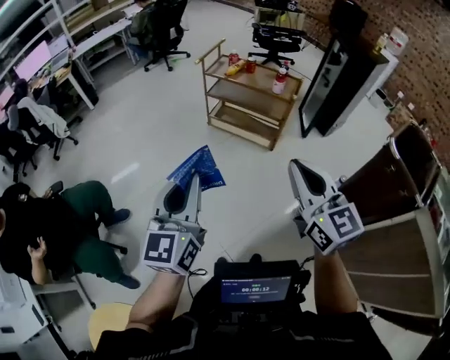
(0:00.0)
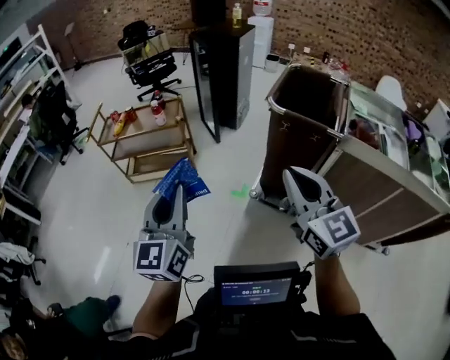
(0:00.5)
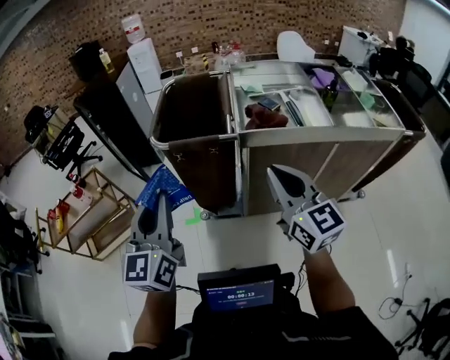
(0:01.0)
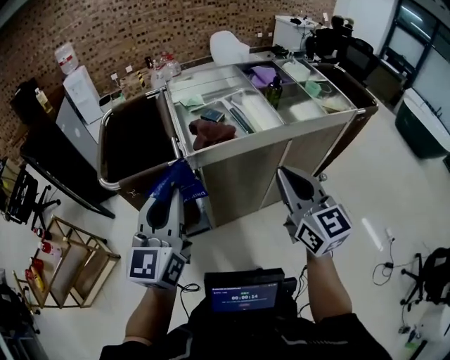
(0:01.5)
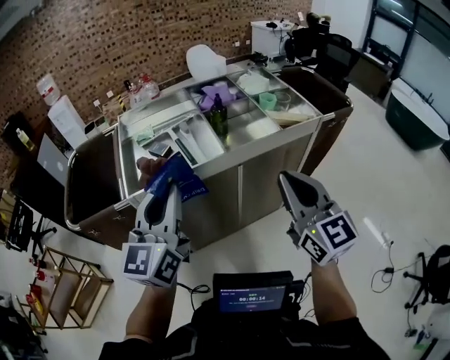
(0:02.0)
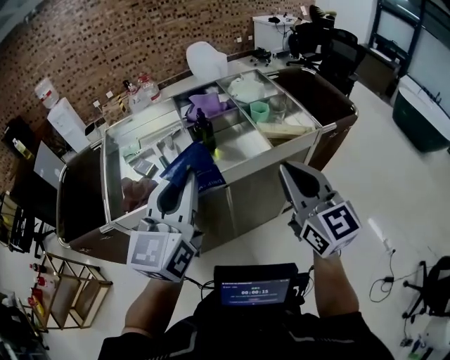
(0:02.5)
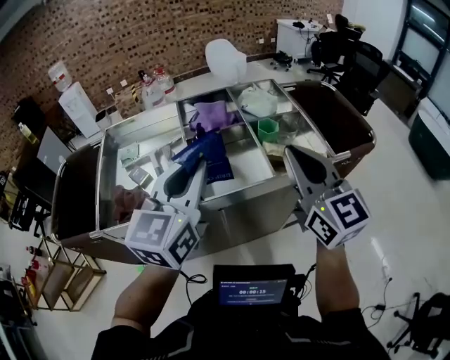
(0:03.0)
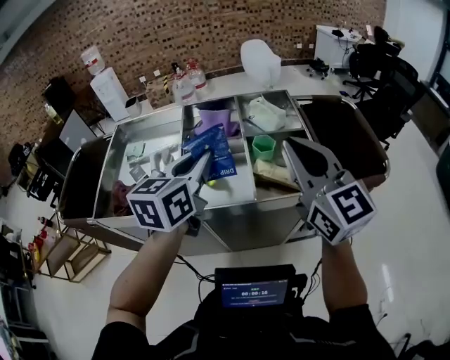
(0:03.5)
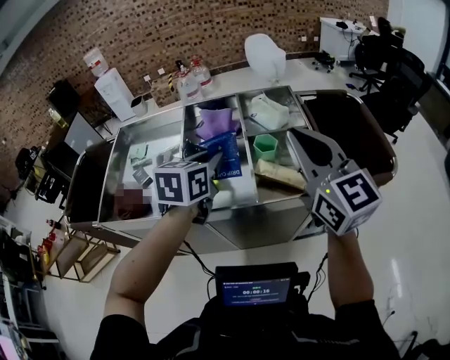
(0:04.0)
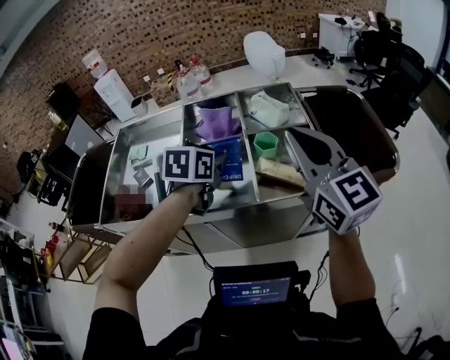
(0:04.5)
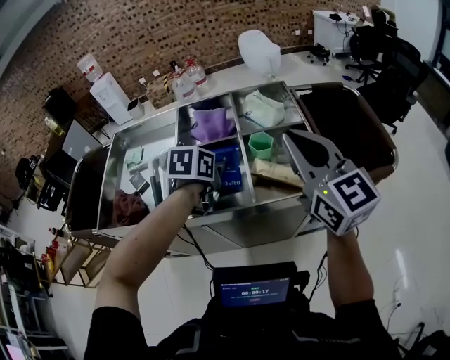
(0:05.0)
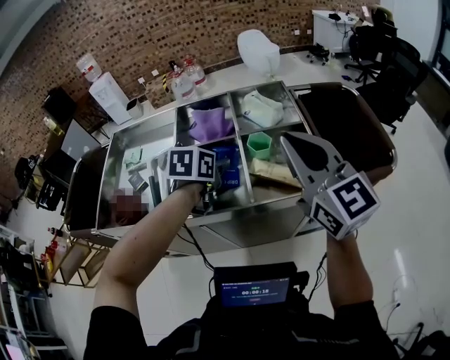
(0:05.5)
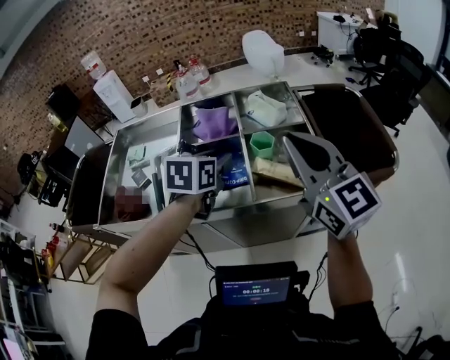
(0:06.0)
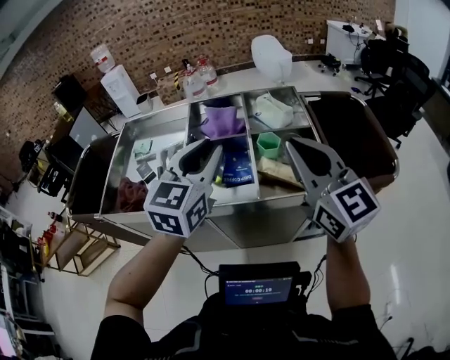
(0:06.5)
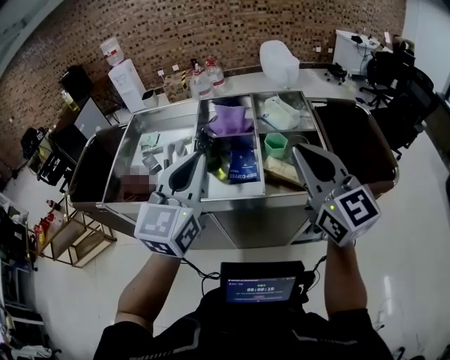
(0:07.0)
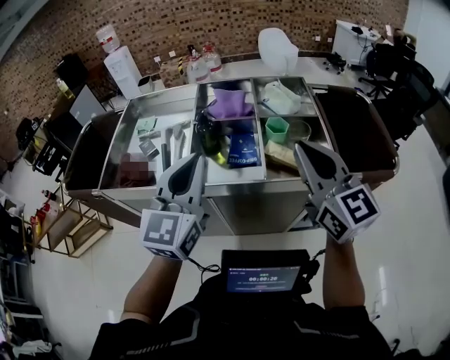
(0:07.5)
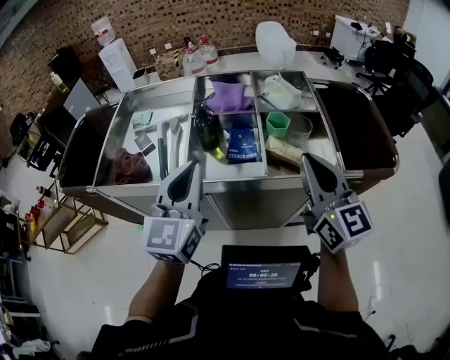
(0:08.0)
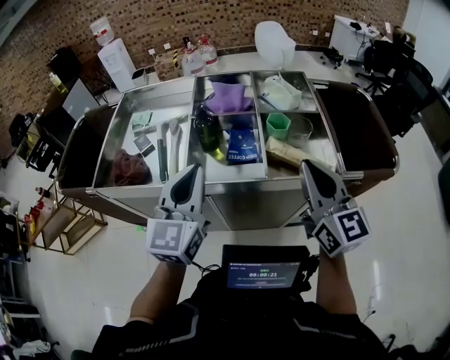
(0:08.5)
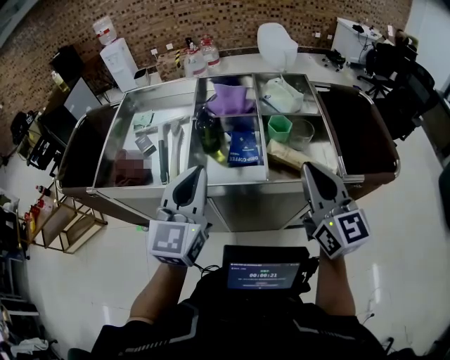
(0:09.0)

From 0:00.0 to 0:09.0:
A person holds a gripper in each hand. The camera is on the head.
From 0:00.0 to 0:02.0: The two grippers travel together, roughly 1 m. The left gripper swivels roughly 90 degrees, while the right gripper swivels about 90 degrees.
From 0:02.0 to 0:04.5: The two grippers travel together, forward and to the right, approximately 50 cm. The left gripper tilts its fingers approximately 50 degrees downward. Meanwhile the right gripper changes its angle by approximately 20 degrees.
From 0:04.5 to 0:07.0: The left gripper shifts approximately 20 cm backward, upward and to the left, and points its fingers roughly 40 degrees further upward. Meanwhile the right gripper shifts approximately 5 cm backward.
From 0:07.0 to 0:09.0: The grippers both shift downward by approximately 10 cm.

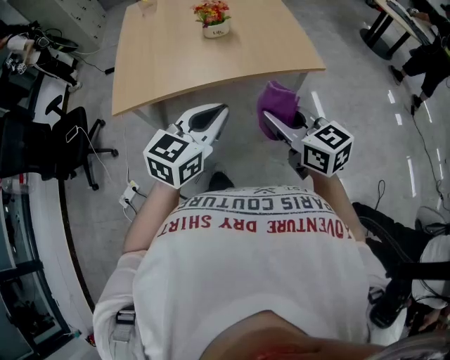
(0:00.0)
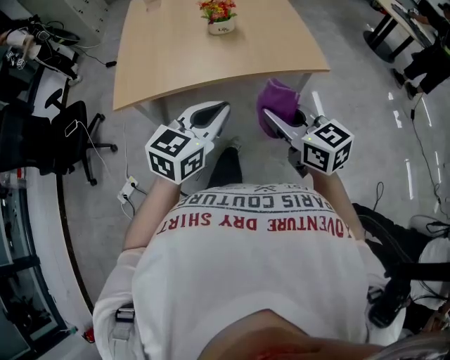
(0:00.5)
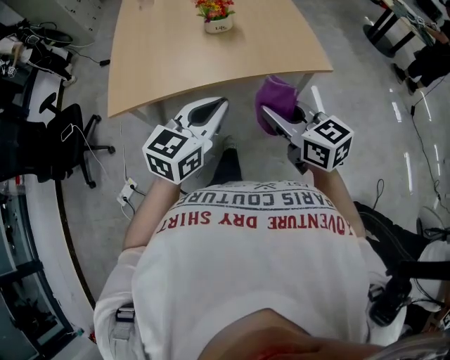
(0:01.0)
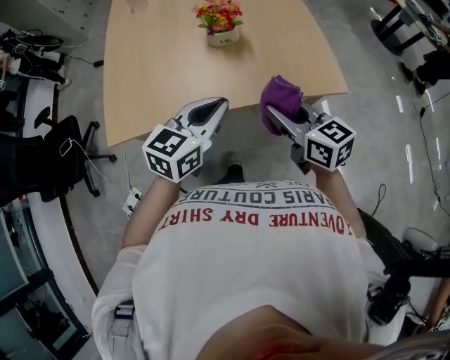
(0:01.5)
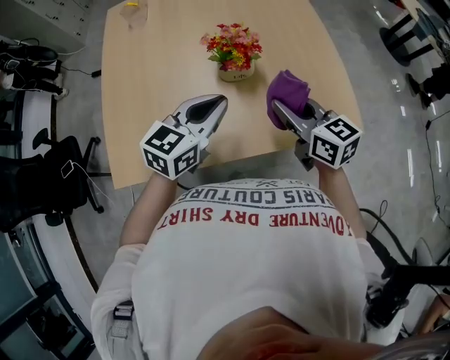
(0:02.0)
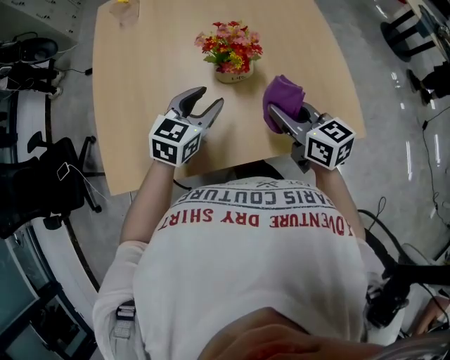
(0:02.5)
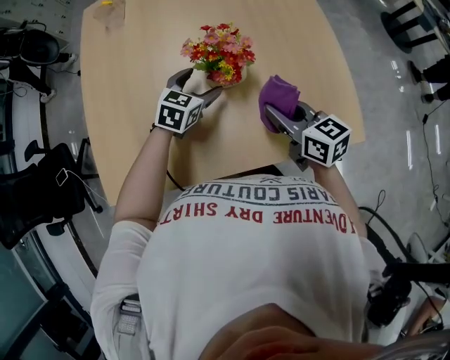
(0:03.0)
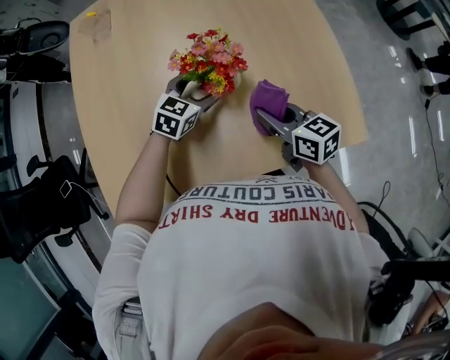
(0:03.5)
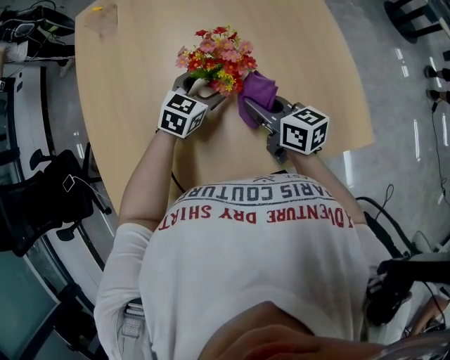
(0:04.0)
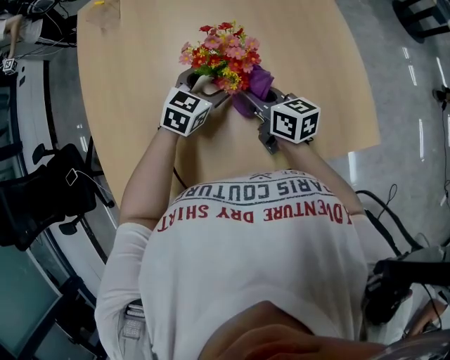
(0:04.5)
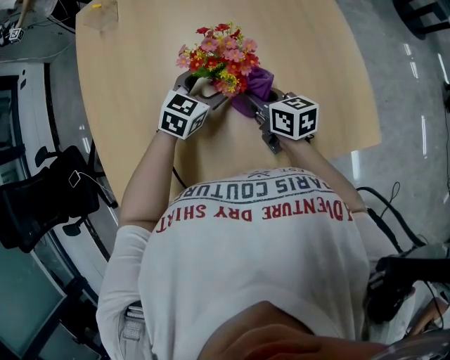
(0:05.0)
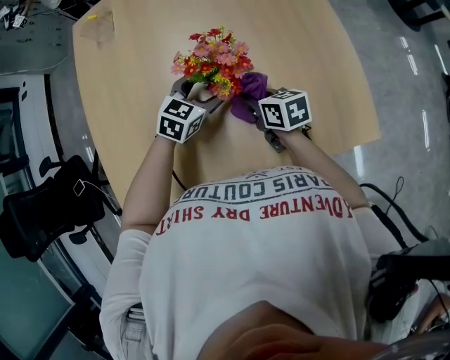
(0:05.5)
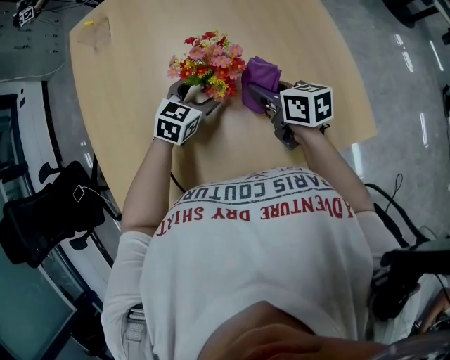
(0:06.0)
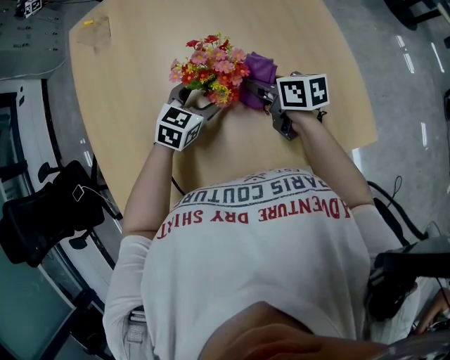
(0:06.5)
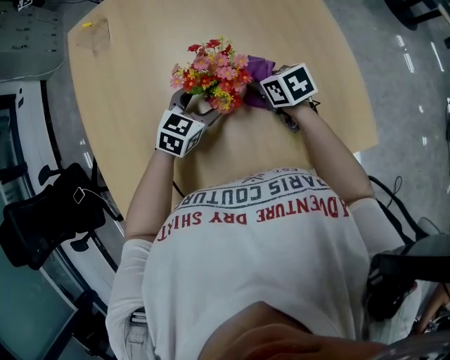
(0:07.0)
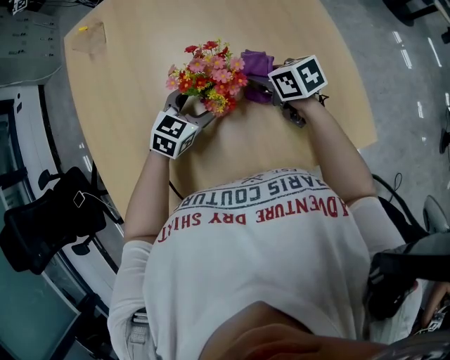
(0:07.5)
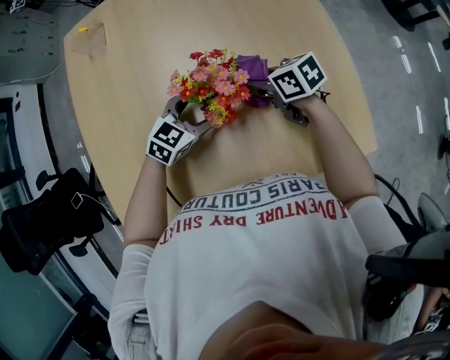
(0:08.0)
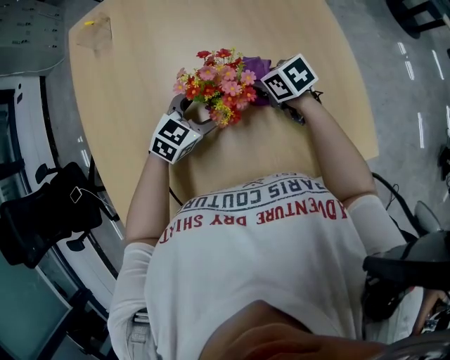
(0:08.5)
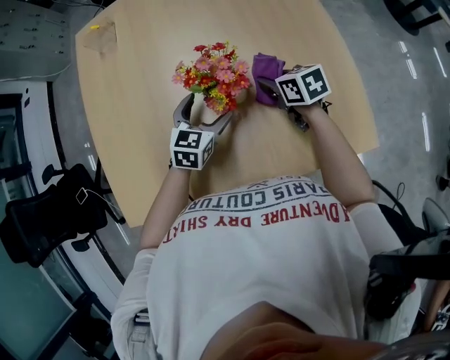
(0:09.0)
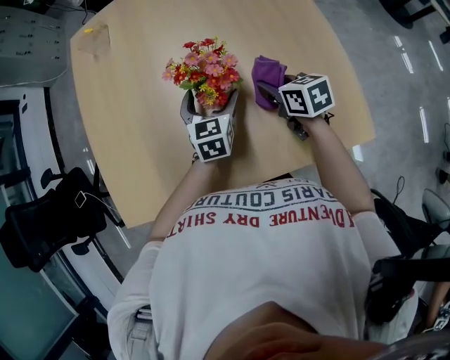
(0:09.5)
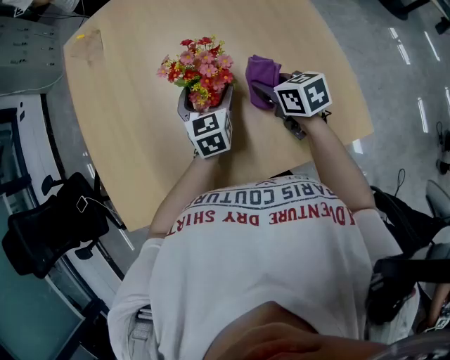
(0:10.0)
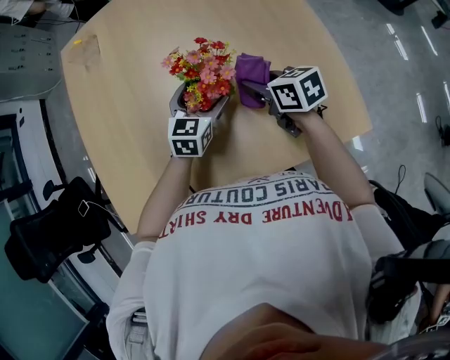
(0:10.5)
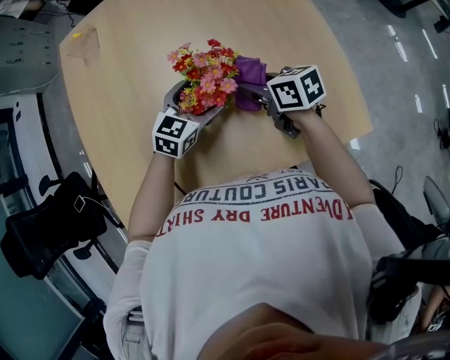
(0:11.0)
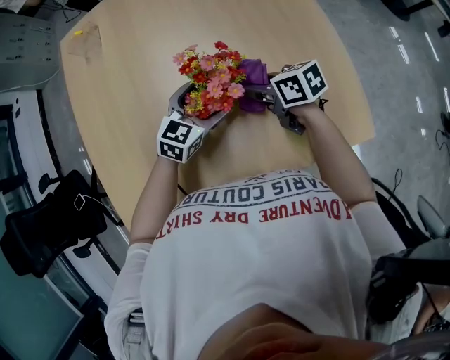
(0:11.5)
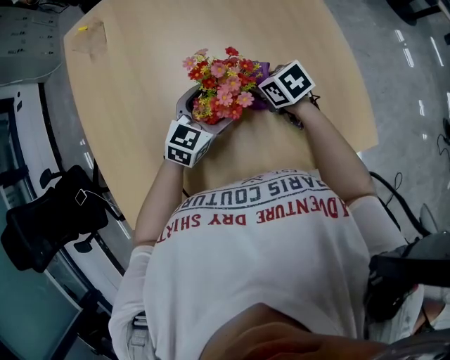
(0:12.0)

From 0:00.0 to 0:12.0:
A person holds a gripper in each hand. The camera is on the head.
From 0:00.0 to 0:02.0: The pair of grippers is taken forward, approximately 40 cm.
From 0:02.0 to 0:04.0: The right gripper moves downward and forward, approximately 15 cm. The left gripper is displaced downward and forward by about 25 cm, swivels about 20 degrees, and opens its fingers.
From 0:06.0 to 0:08.0: The right gripper changes place by about 10 cm, and changes its angle by roughly 20 degrees.
From 0:08.0 to 0:10.0: The left gripper rotates about 50 degrees; the right gripper ends up approximately 5 cm from where it was.
From 0:10.0 to 0:12.0: The left gripper swivels about 40 degrees. The right gripper is displaced downward by roughly 5 cm.

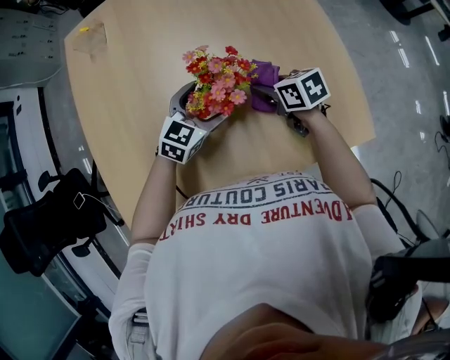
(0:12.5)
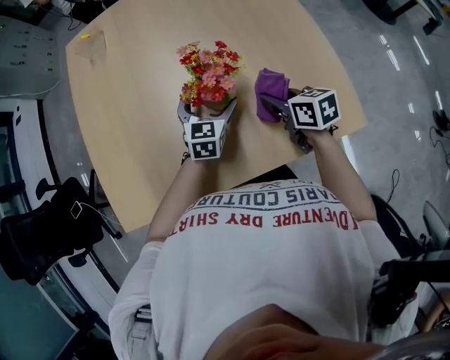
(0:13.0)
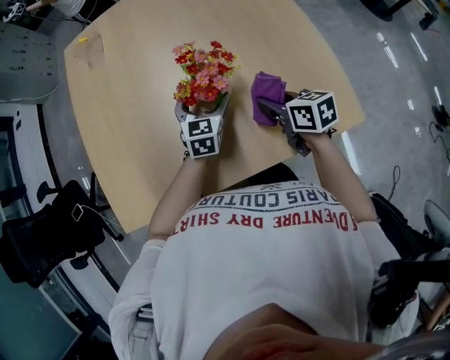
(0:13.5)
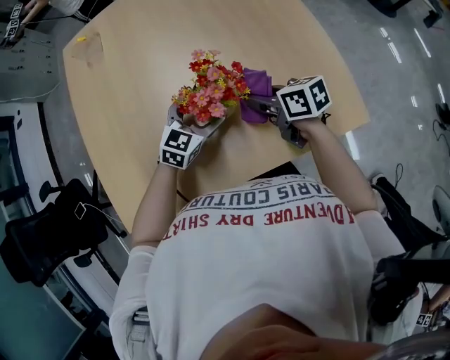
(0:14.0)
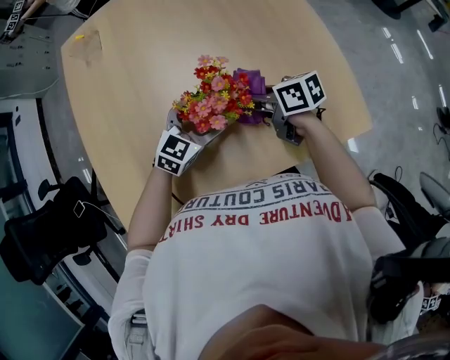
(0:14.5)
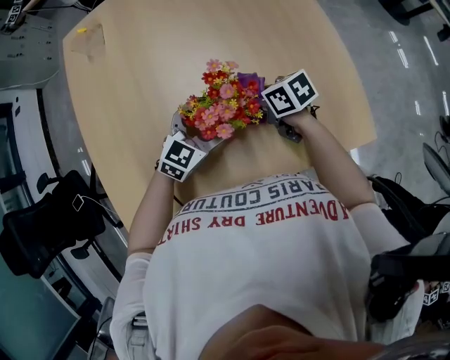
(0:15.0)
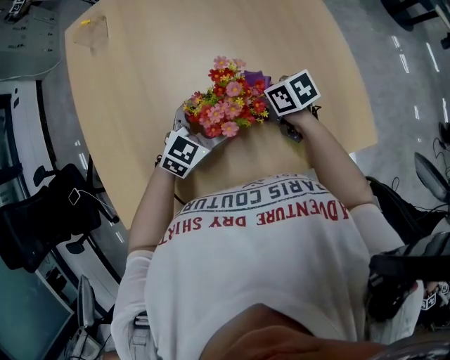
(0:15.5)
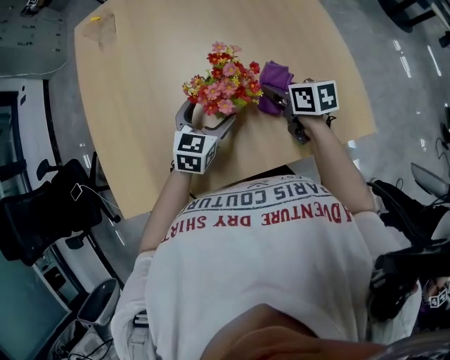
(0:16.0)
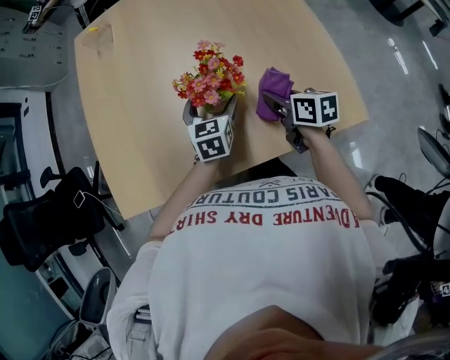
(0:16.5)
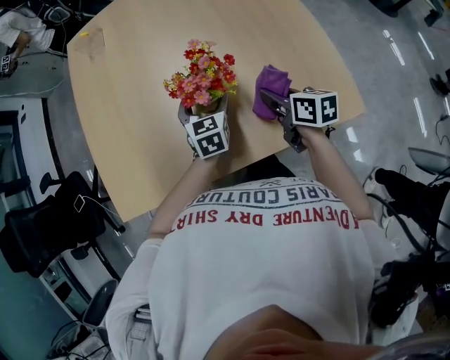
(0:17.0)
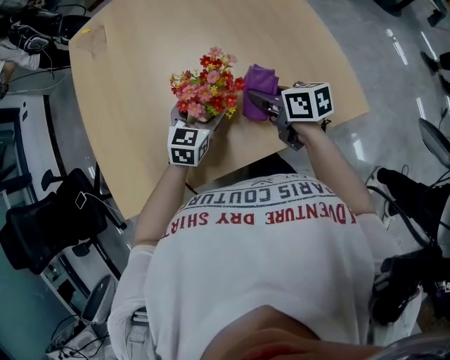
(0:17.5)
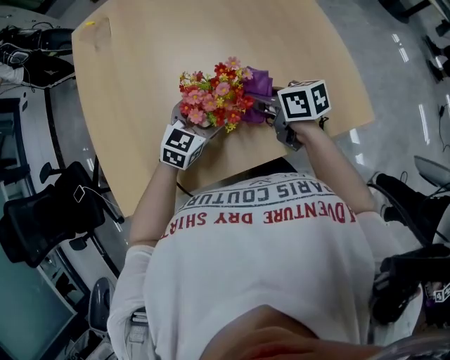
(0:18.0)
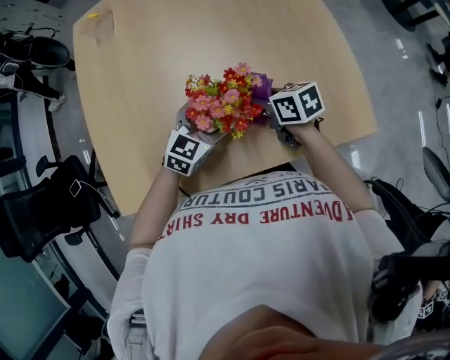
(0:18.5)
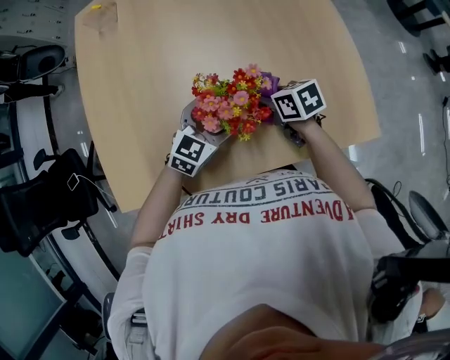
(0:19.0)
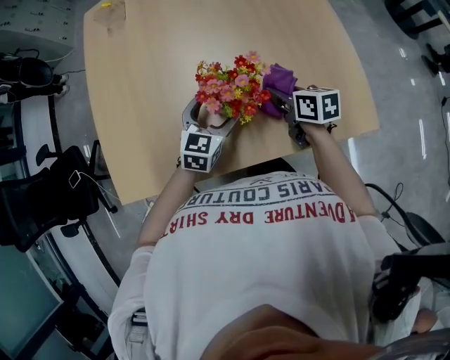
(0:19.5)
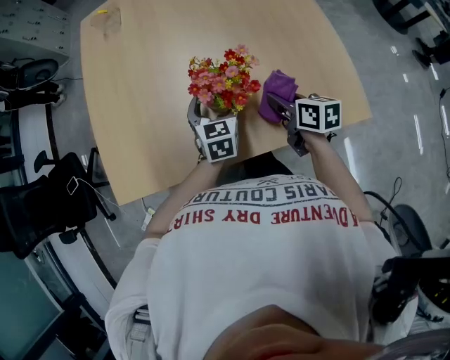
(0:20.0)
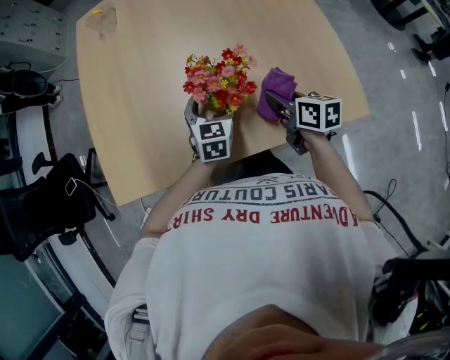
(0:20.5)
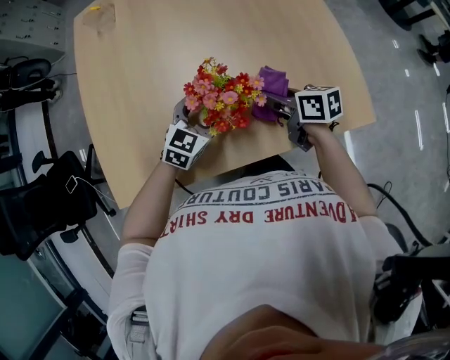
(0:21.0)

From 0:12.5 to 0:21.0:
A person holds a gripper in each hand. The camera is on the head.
From 0:12.5 to 0:14.5: The right gripper ends up some 5 cm from where it was.
From 0:14.5 to 0:16.5: The right gripper travels to the right and backward by about 10 cm. The left gripper swivels some 40 degrees.
From 0:16.5 to 0:19.0: The right gripper moves to the left and downward, roughly 10 cm, and changes its angle by roughly 20 degrees. The left gripper swivels some 40 degrees.
From 0:19.0 to 0:21.0: The right gripper moves some 5 cm.
